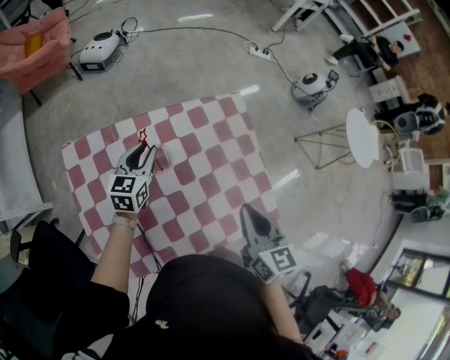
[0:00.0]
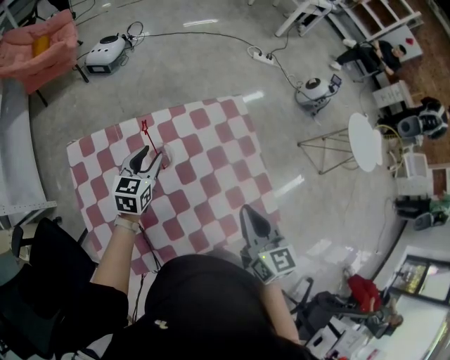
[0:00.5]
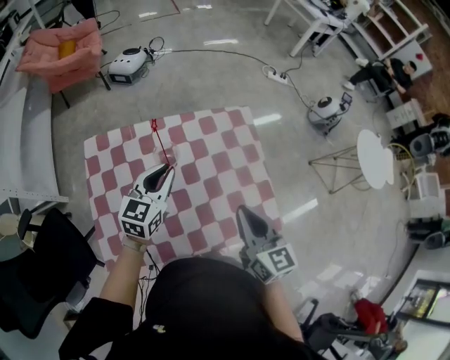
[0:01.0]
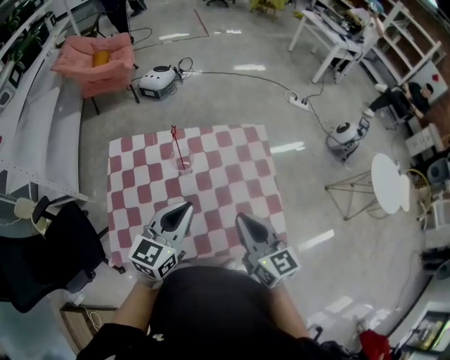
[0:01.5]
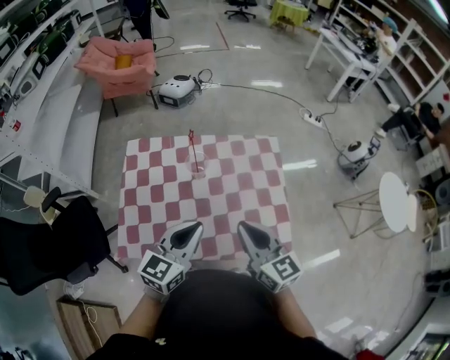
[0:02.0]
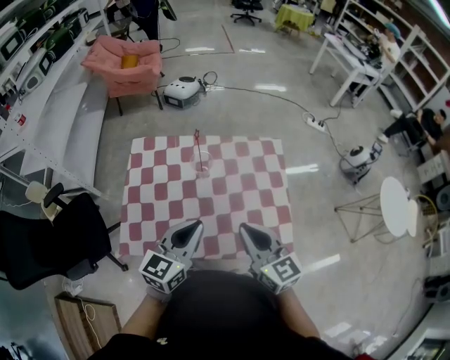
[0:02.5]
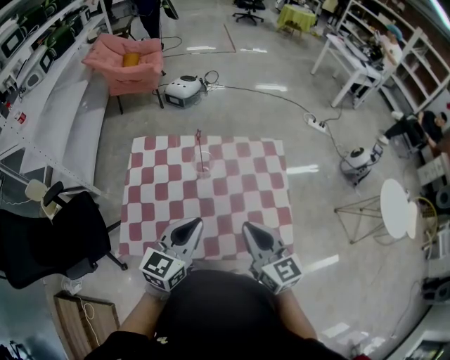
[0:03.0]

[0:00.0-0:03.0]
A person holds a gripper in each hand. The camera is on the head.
0:00.0 to 0:01.5: The right gripper travels backward and upward by some 10 cm, and swivels approximately 30 degrees. Meanwhile the left gripper goes some 30 cm backward, upward and to the right, and closes its fingers.
0:01.5 to 0:03.0: The left gripper goes about 5 cm backward.

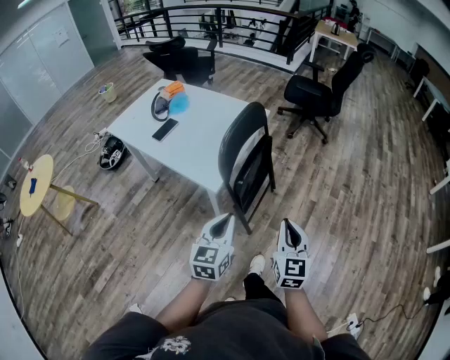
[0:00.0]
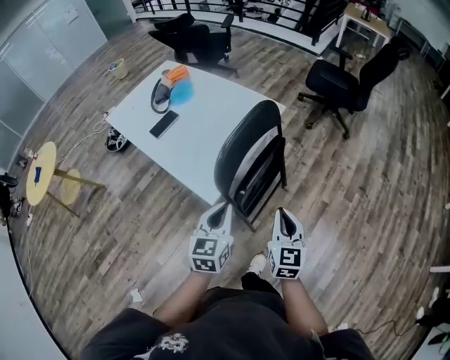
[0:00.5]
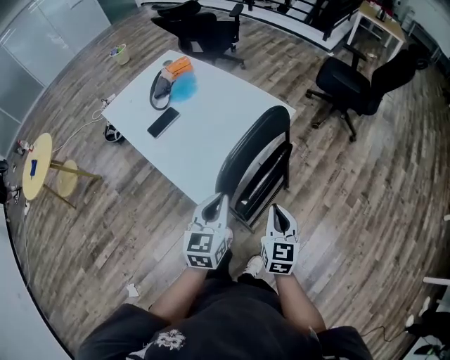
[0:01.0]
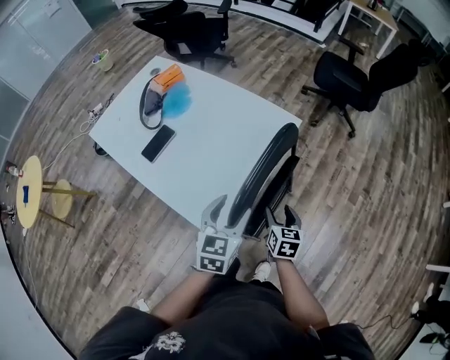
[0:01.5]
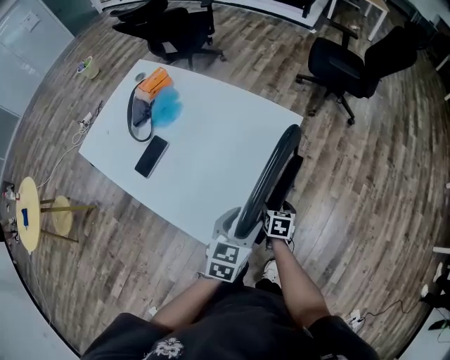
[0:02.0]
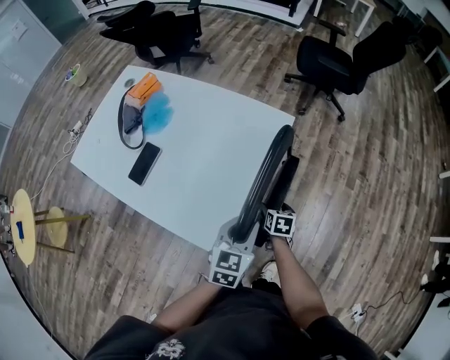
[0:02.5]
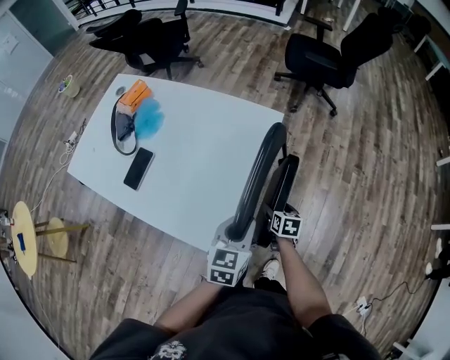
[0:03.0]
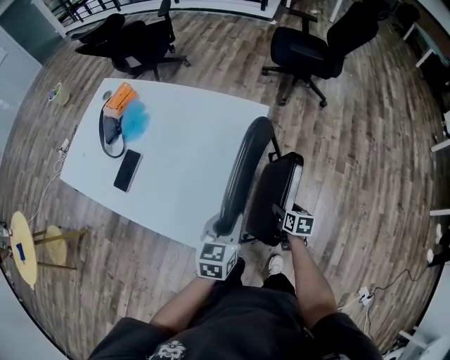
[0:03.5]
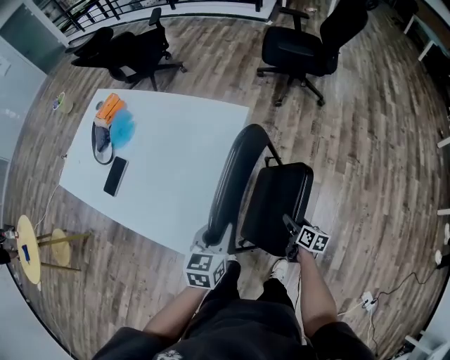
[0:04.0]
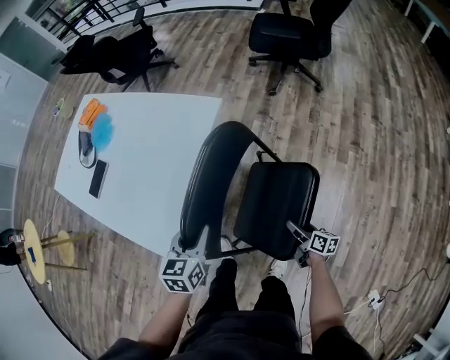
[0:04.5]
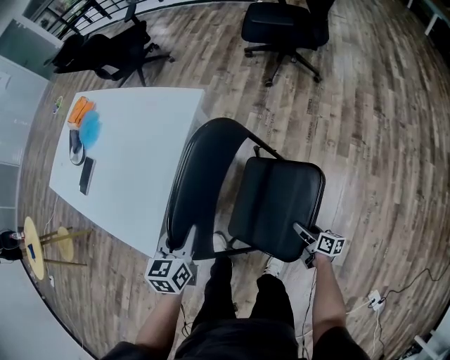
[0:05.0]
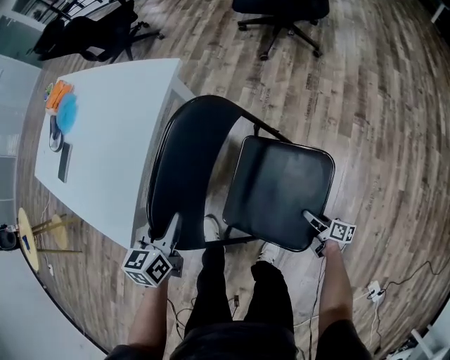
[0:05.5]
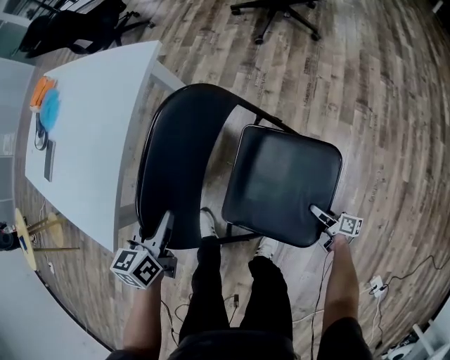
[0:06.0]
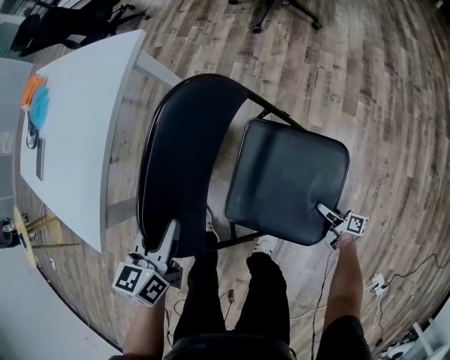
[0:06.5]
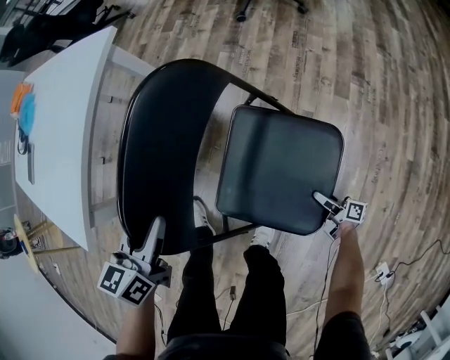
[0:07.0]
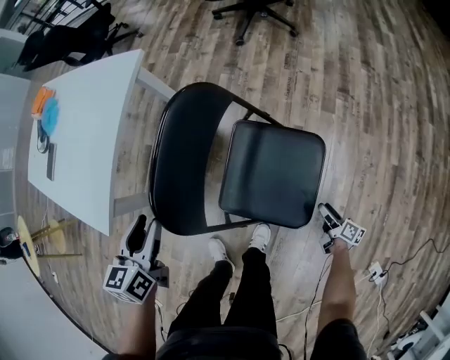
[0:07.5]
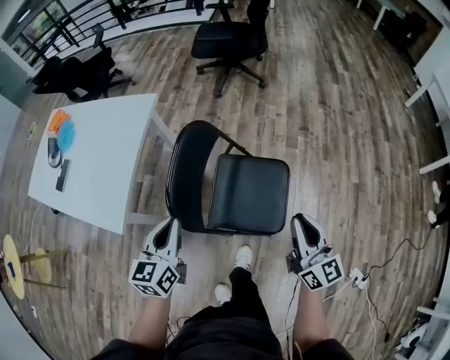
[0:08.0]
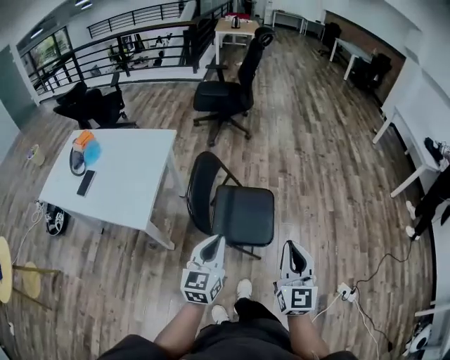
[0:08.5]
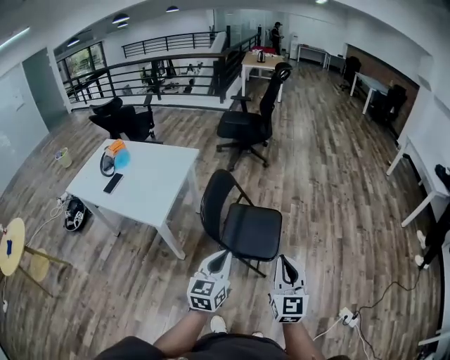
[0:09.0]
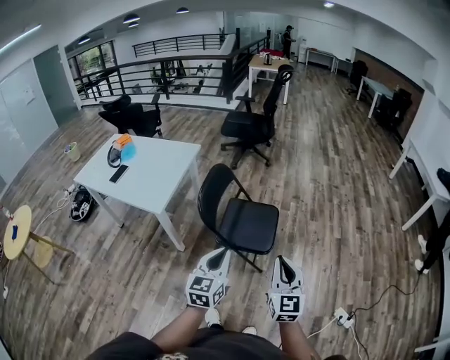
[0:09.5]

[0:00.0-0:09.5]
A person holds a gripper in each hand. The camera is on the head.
0:00.0 to 0:02.0: The left gripper travels forward by approximately 40 cm, swivels some 20 degrees, and opens up; the right gripper travels forward and downward by about 50 cm, tilts its fingers approximately 40 degrees downward, and opens.
0:02.0 to 0:04.0: The right gripper shifts roughly 25 cm to the right, and changes its angle by roughly 30 degrees. The left gripper is displaced to the right by approximately 10 cm, and closes its fingers.
0:04.0 to 0:05.5: The left gripper goes about 15 cm downward and to the right, while the right gripper is displaced to the right, downward and backward by some 35 cm, and turns by roughly 20 degrees.
0:05.5 to 0:07.5: The right gripper heads to the right and backward, covering about 20 cm; the left gripper moves backward, to the right and upward, approximately 10 cm.
0:07.5 to 0:09.5: The left gripper moves roughly 50 cm, turns by some 30 degrees, and closes. The right gripper travels upward by roughly 60 cm, rotates around the line of its fingers by approximately 60 degrees, counterclockwise from behind, and closes.

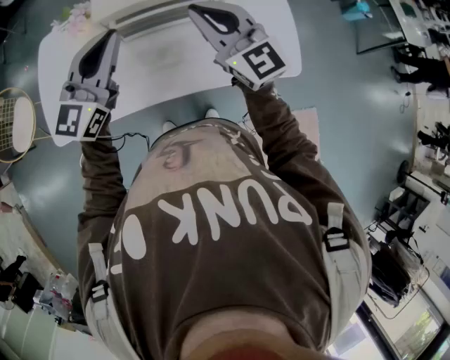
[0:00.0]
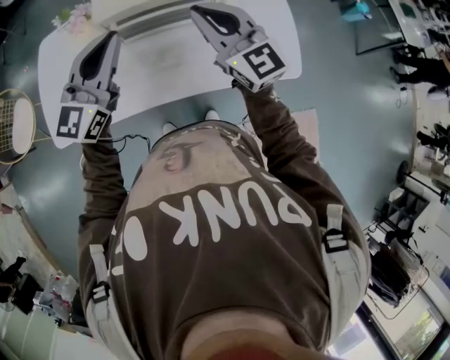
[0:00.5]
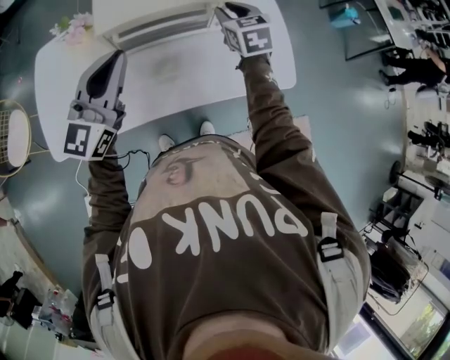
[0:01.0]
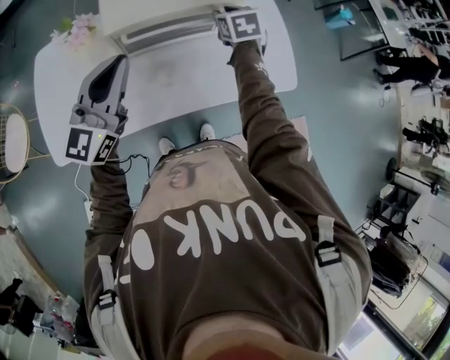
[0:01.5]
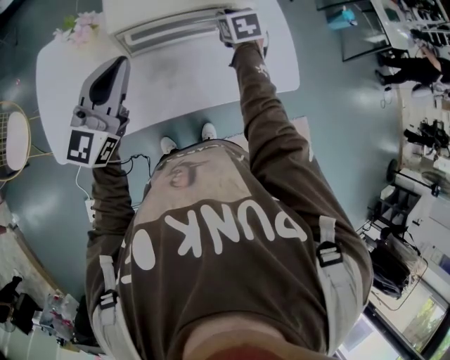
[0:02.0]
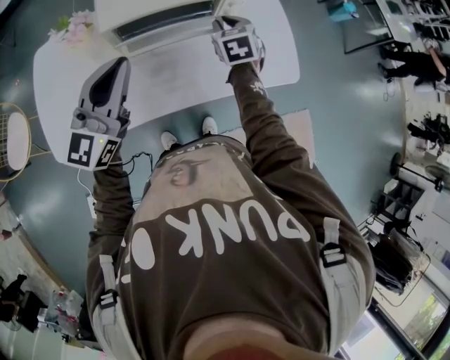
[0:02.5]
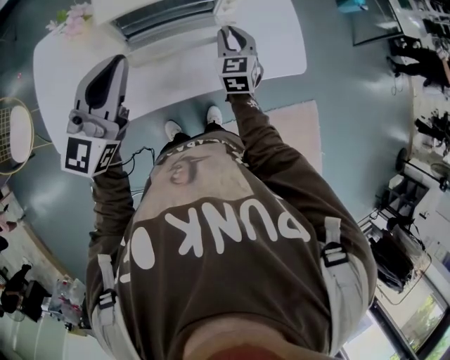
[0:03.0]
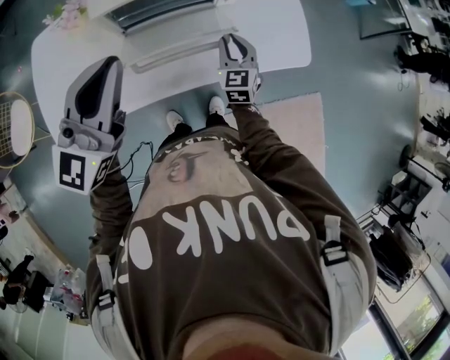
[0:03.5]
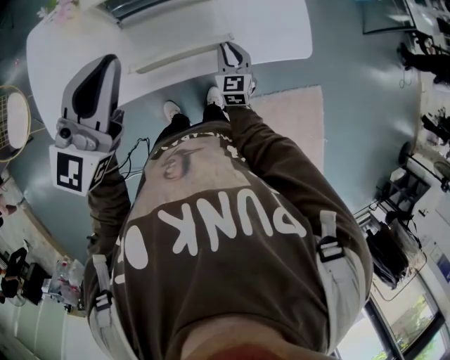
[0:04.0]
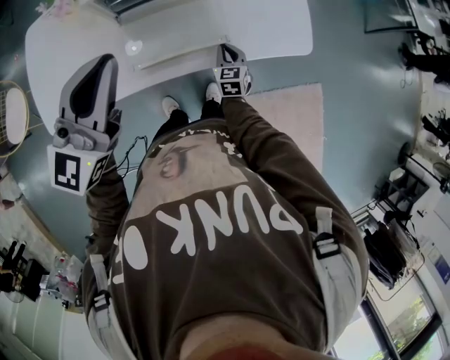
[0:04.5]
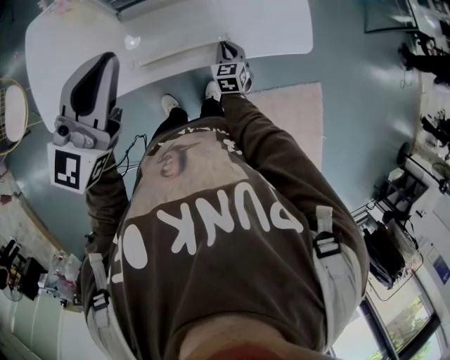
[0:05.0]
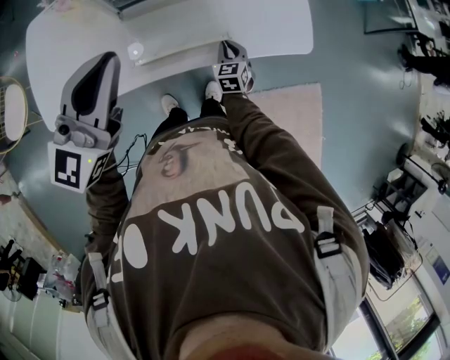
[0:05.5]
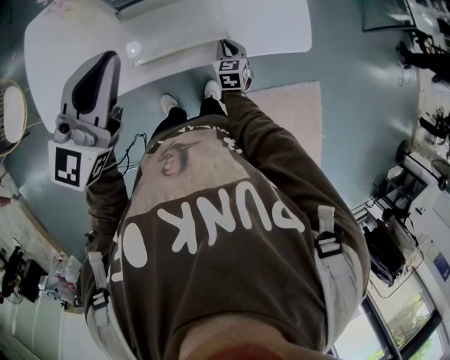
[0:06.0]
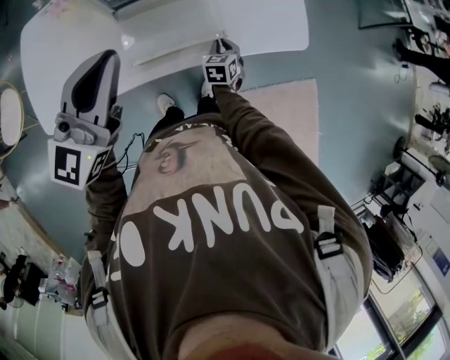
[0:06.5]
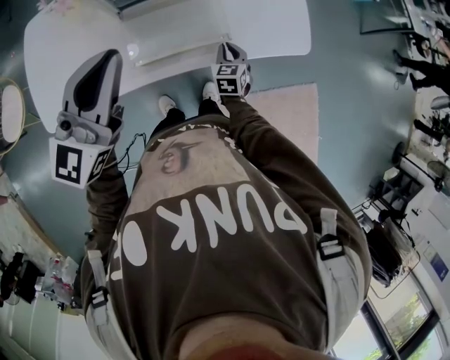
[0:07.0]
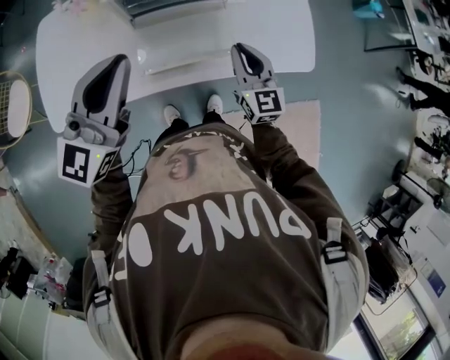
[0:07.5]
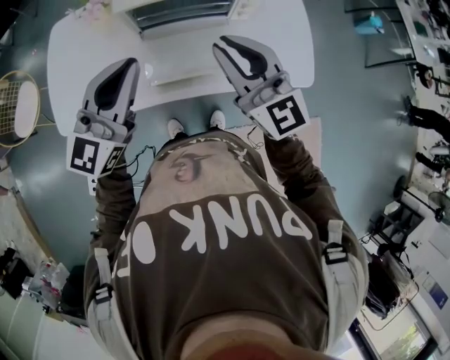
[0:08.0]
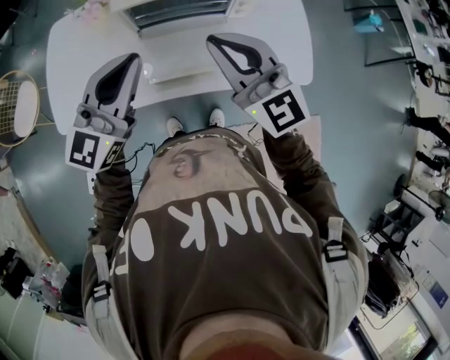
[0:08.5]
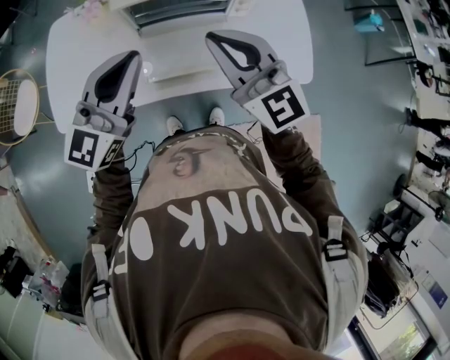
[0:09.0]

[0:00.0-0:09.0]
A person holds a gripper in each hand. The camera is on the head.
0:00.0 to 0:02.0: The right gripper shifts approximately 25 cm downward and forward, and tilts its fingers roughly 50 degrees downward, while the left gripper shifts approximately 5 cm to the left.
0:02.0 to 0:04.5: The left gripper heads to the right, covering about 5 cm; the right gripper goes about 30 cm downward and backward.
0:04.5 to 0:07.0: The grippers make only small movements.
0:07.0 to 0:09.0: The right gripper shifts approximately 40 cm upward, and angles its fingers upward, by about 40 degrees.

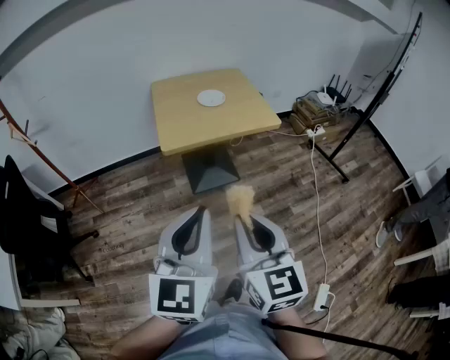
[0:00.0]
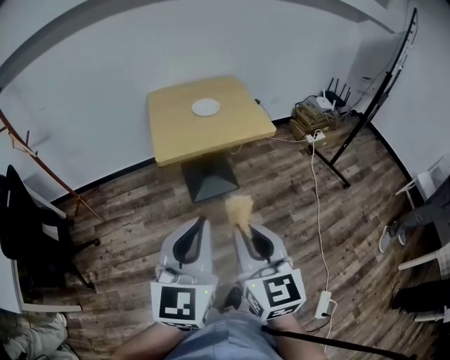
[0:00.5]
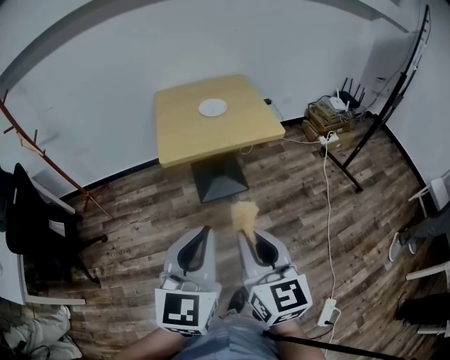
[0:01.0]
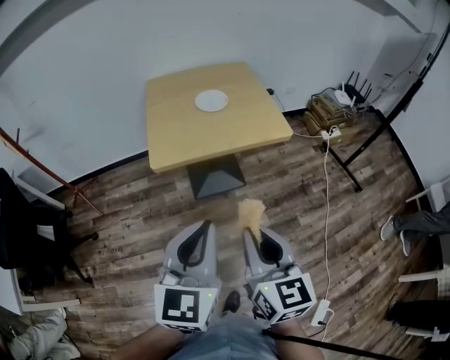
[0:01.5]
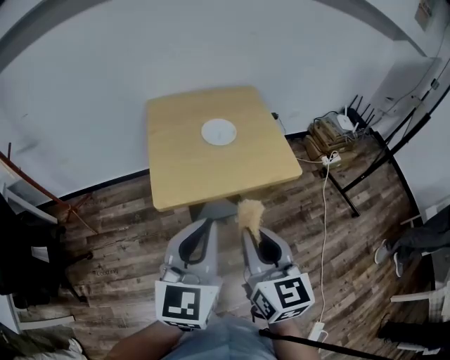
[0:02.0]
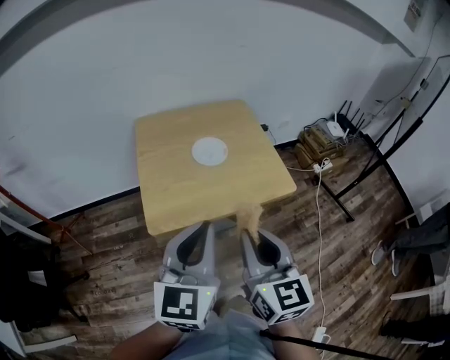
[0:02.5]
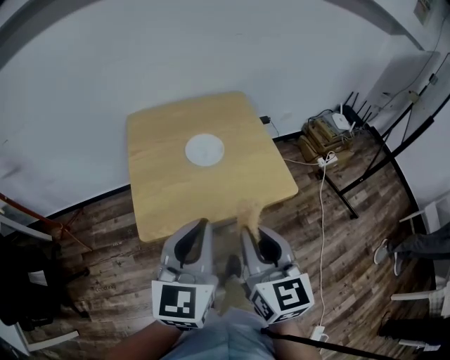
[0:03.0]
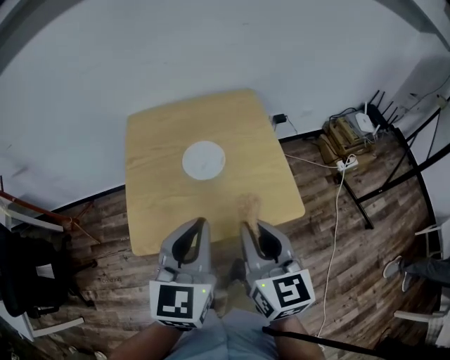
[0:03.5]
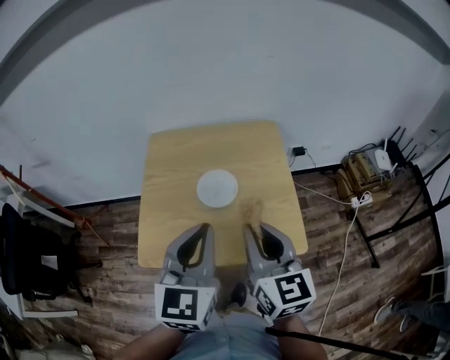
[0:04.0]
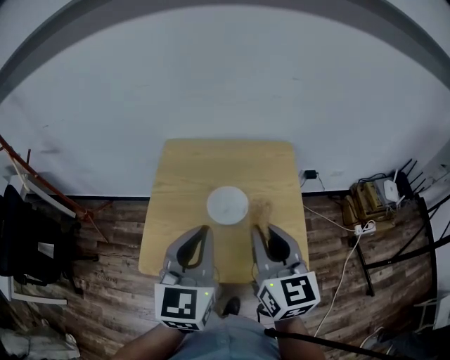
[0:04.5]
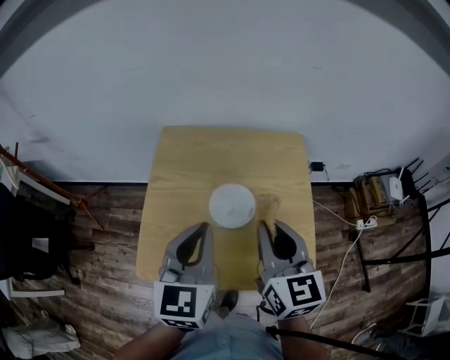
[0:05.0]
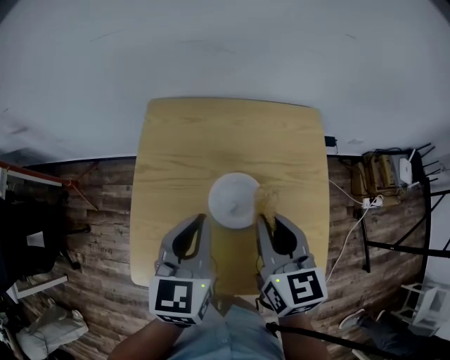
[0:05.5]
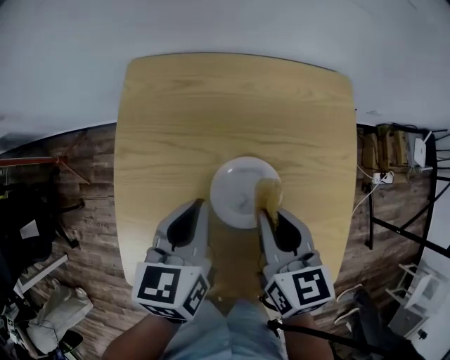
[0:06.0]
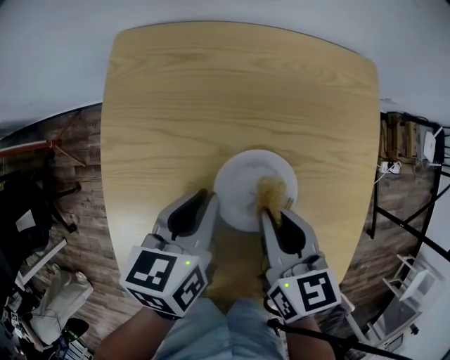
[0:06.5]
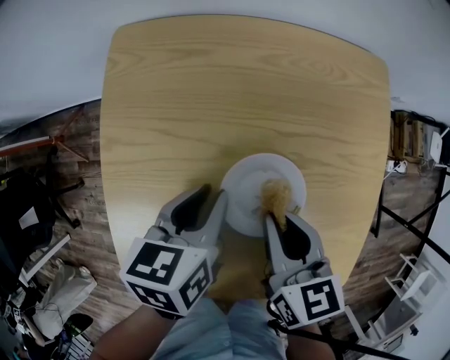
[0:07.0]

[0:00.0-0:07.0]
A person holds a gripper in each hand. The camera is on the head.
0:00.0 to 0:02.0: The grippers both shift forward by about 25 cm.
0:02.0 to 0:03.5: The grippers both shift forward by some 20 cm.
0:03.5 to 0:05.0: Both grippers travel together forward, about 15 cm.
0:05.0 to 0:07.0: The left gripper shifts about 25 cm downward and forward, angles its fingers downward, by approximately 30 degrees, and opens, while the right gripper is displaced downward by about 20 cm, and rotates some 30 degrees.
